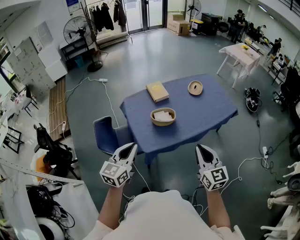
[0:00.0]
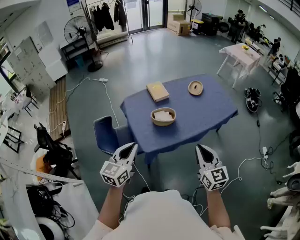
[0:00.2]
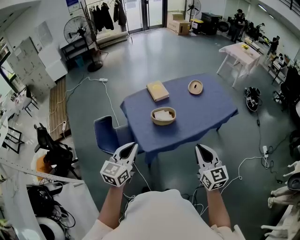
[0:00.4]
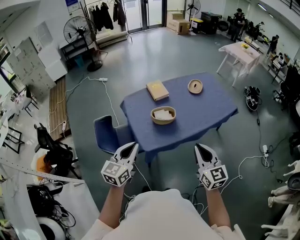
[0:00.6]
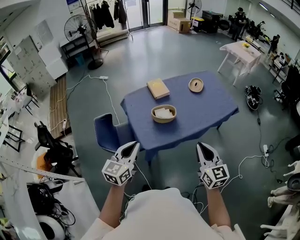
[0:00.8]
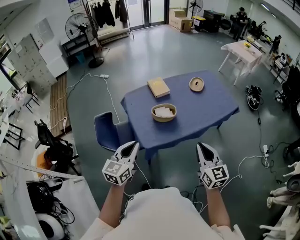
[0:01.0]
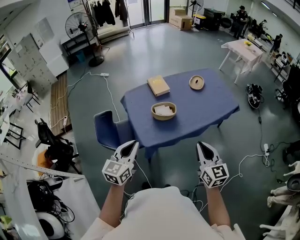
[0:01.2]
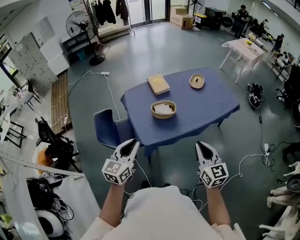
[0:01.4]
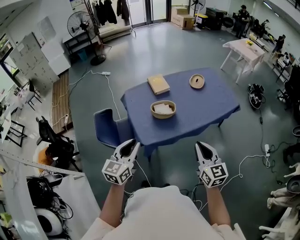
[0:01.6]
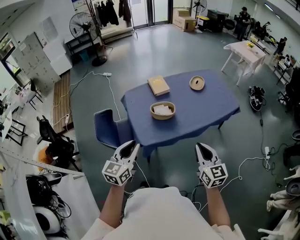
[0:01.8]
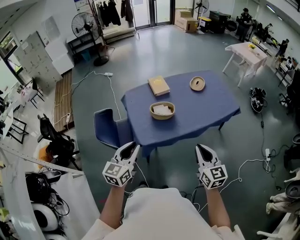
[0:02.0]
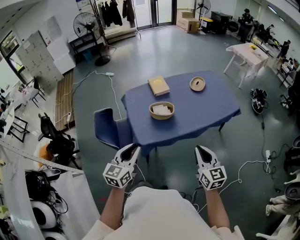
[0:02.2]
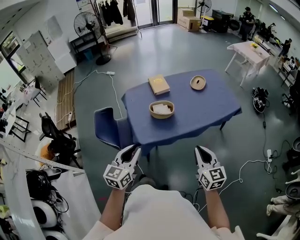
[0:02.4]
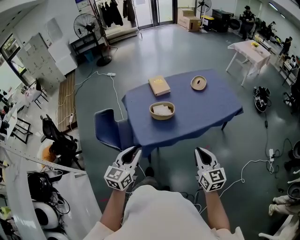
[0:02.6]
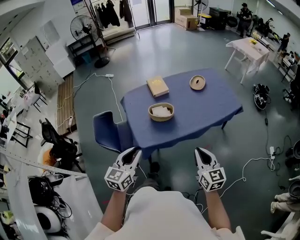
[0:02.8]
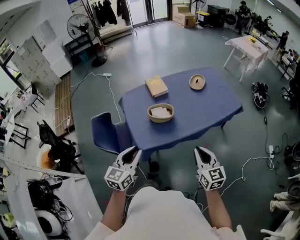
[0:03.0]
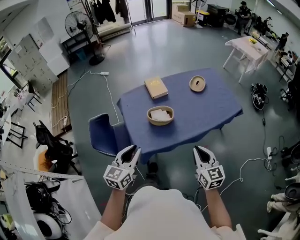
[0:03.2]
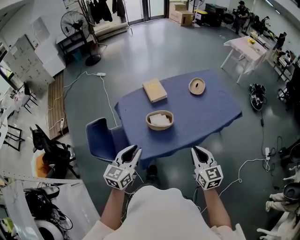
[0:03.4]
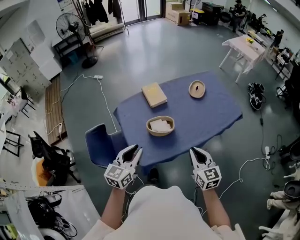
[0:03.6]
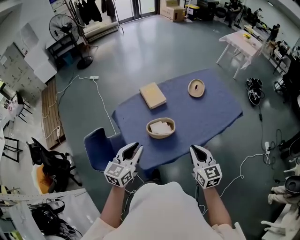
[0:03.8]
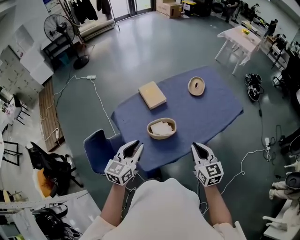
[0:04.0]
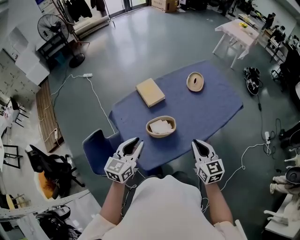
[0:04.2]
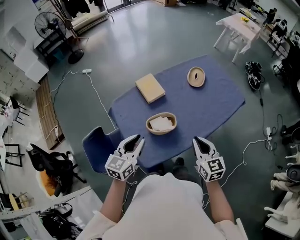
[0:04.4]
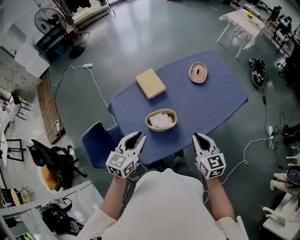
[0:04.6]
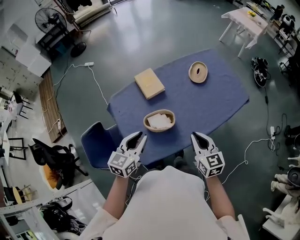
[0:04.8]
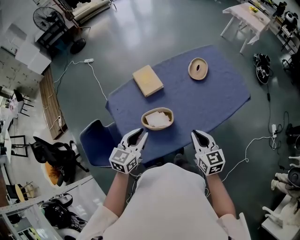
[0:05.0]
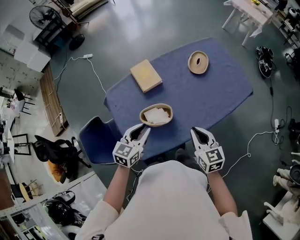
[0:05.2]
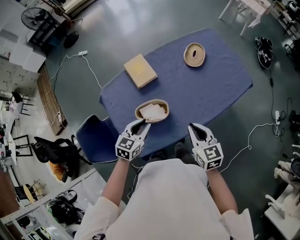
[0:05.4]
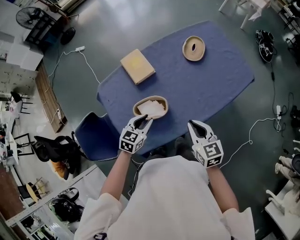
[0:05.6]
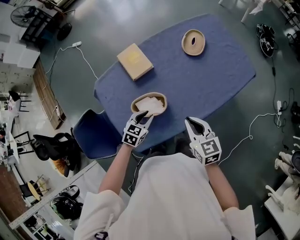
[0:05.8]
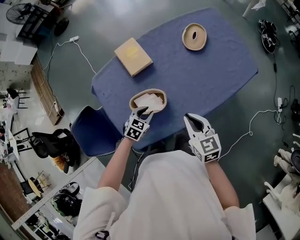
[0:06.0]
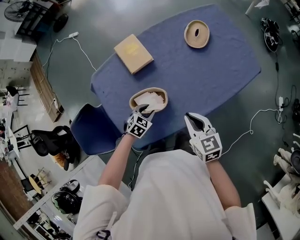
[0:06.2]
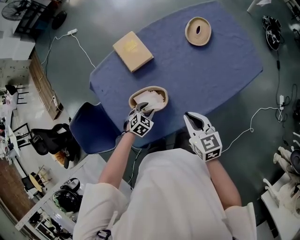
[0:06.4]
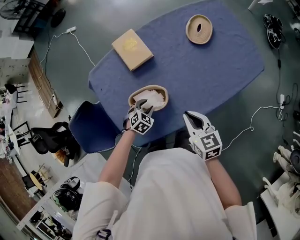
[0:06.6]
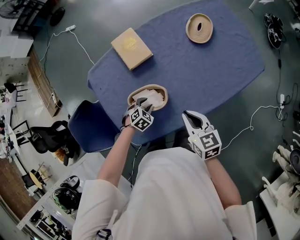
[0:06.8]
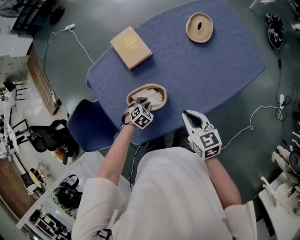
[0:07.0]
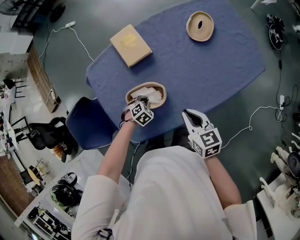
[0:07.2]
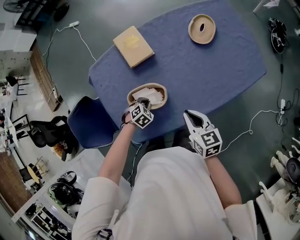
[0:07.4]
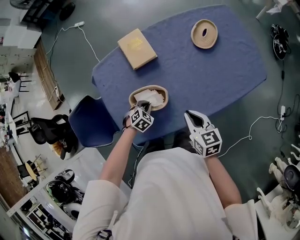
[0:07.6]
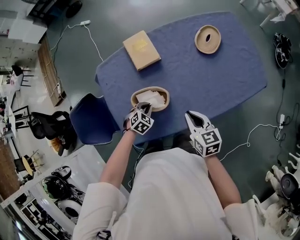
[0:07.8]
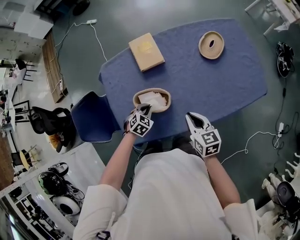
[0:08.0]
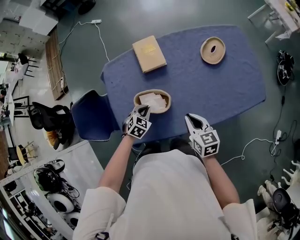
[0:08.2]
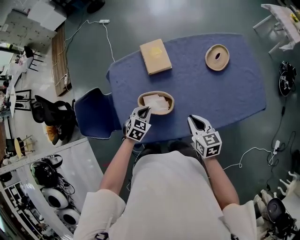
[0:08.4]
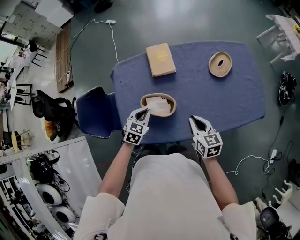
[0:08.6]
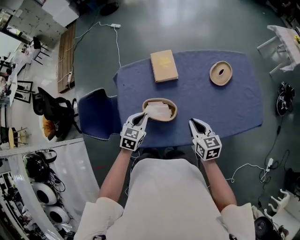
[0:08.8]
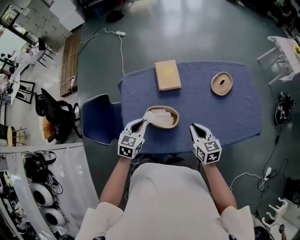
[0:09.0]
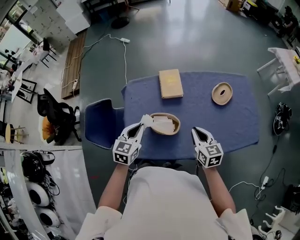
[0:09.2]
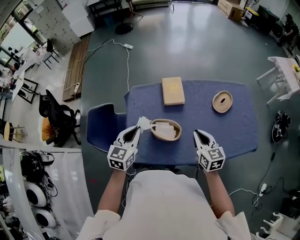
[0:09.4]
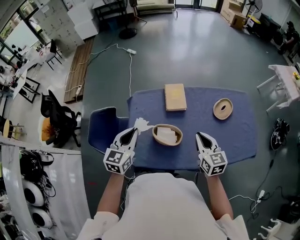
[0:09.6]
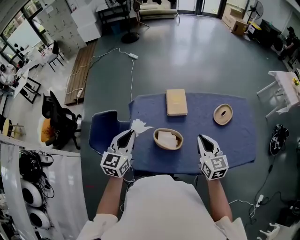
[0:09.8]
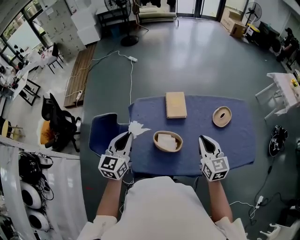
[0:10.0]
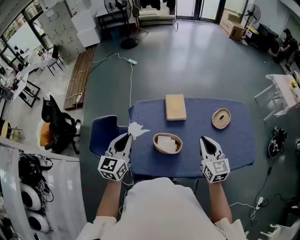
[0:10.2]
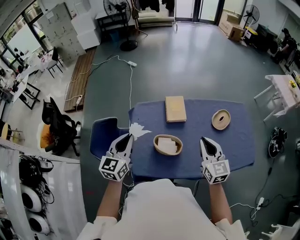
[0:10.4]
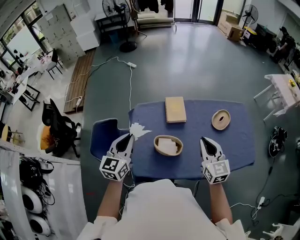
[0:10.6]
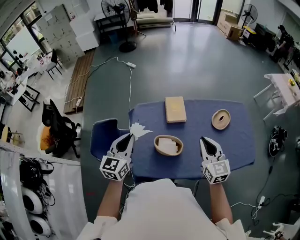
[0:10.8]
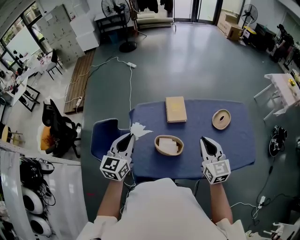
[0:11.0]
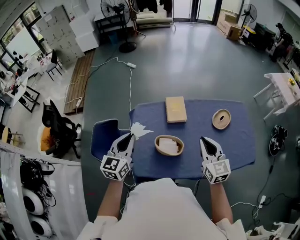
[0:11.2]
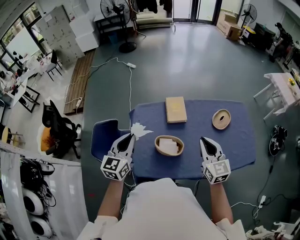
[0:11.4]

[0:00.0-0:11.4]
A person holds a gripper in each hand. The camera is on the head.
0:00.0 to 0:01.4: The grippers stay close to where they were, moving slightly.
0:01.4 to 0:02.8: Both grippers travel together to the right, approximately 5 cm.
0:02.8 to 0:04.2: The right gripper shifts about 25 cm forward and to the left; the left gripper shifts some 30 cm forward.
0:04.2 to 0:05.6: The left gripper shifts about 25 cm downward, to the right and forward, and changes its angle by about 20 degrees; the right gripper travels forward, downward and to the right by approximately 15 cm.
0:05.6 to 0:07.2: The left gripper travels downward by approximately 25 cm, tips its fingers downward by roughly 40 degrees, and closes; the right gripper goes about 10 cm downward.
0:07.2 to 0:08.6: The left gripper heads upward, covering approximately 20 cm, and turns by some 50 degrees.
0:08.6 to 0:10.0: The right gripper travels upward by about 20 cm, and swivels roughly 20 degrees; the left gripper goes about 30 cm upward and to the left, and tips its fingers upward by approximately 30 degrees.
0:10.0 to 0:11.4: The grippers stay close to where they were, moving slightly.

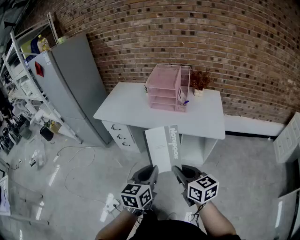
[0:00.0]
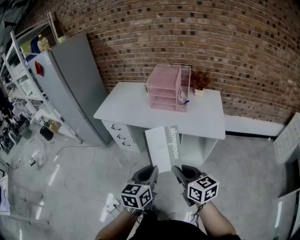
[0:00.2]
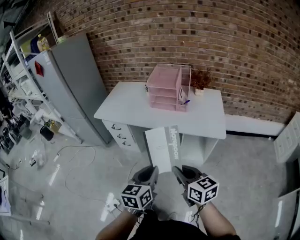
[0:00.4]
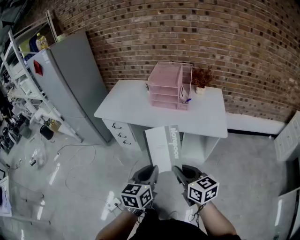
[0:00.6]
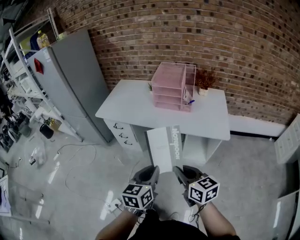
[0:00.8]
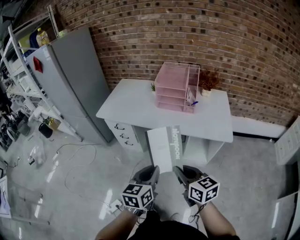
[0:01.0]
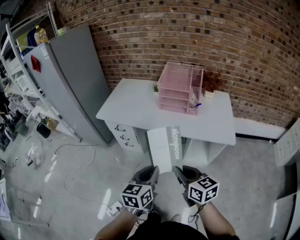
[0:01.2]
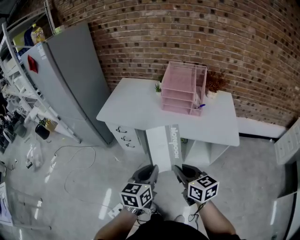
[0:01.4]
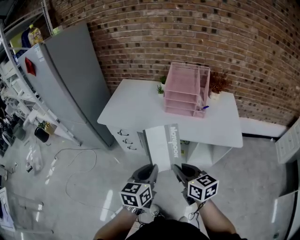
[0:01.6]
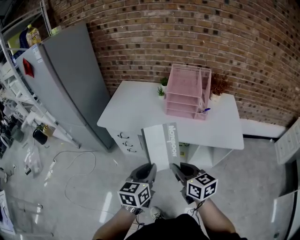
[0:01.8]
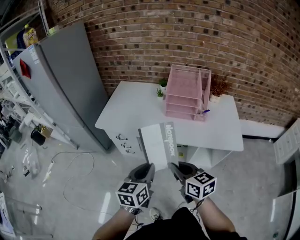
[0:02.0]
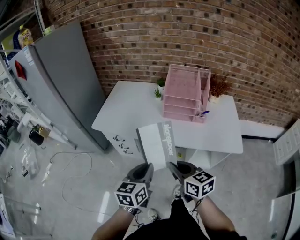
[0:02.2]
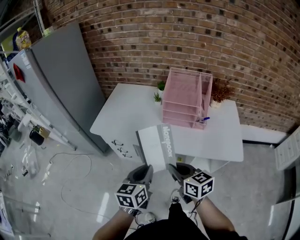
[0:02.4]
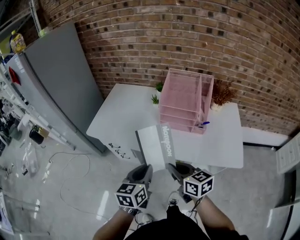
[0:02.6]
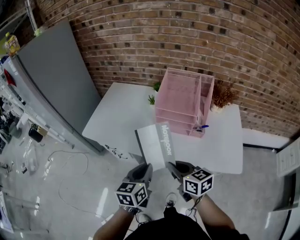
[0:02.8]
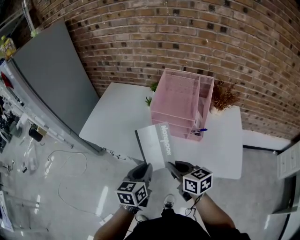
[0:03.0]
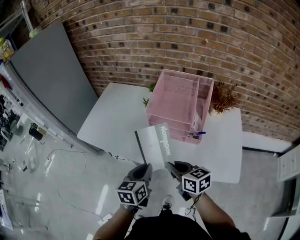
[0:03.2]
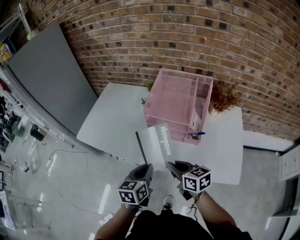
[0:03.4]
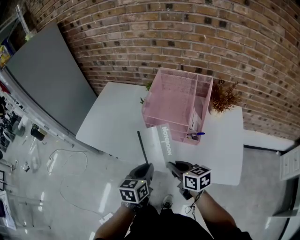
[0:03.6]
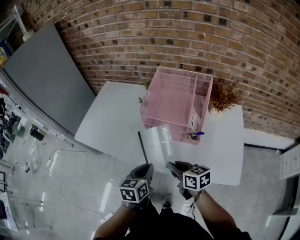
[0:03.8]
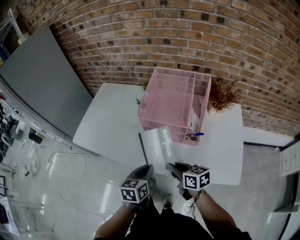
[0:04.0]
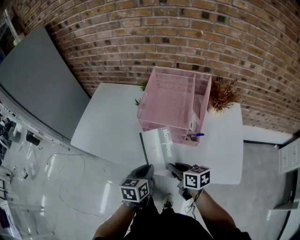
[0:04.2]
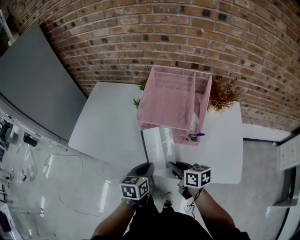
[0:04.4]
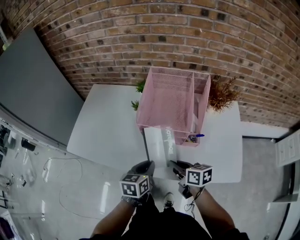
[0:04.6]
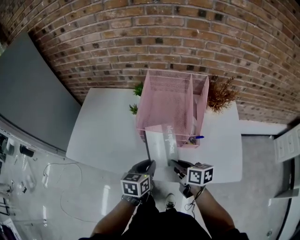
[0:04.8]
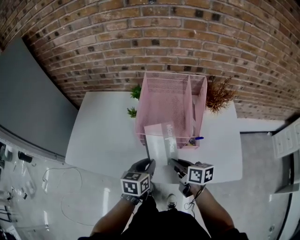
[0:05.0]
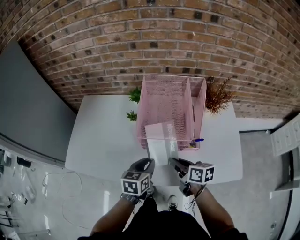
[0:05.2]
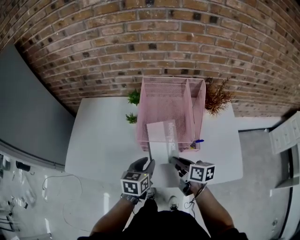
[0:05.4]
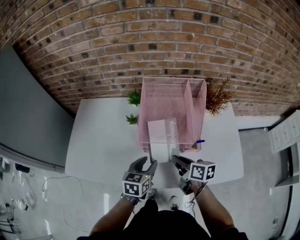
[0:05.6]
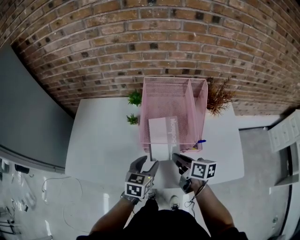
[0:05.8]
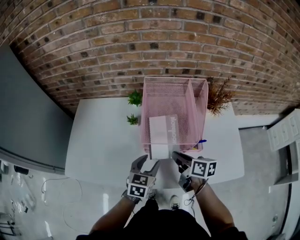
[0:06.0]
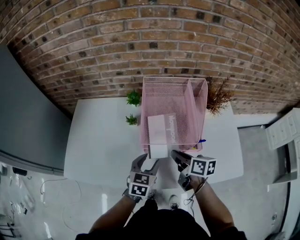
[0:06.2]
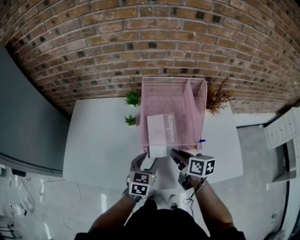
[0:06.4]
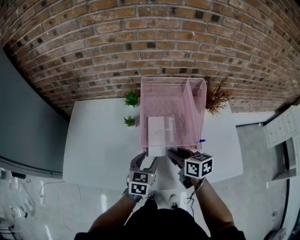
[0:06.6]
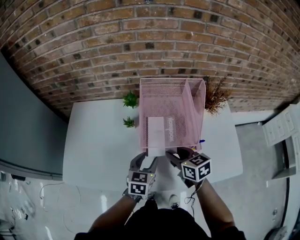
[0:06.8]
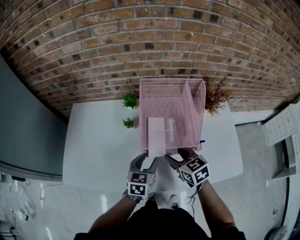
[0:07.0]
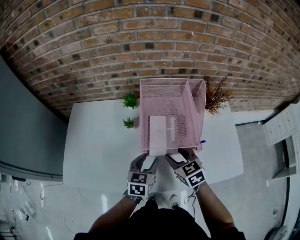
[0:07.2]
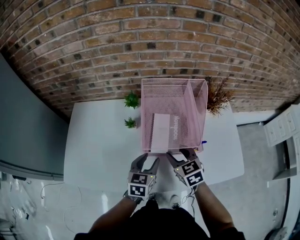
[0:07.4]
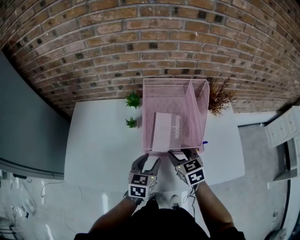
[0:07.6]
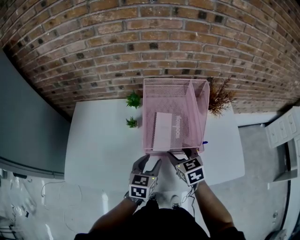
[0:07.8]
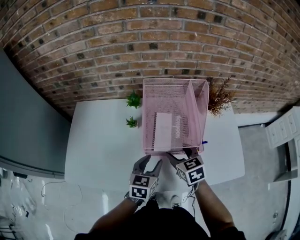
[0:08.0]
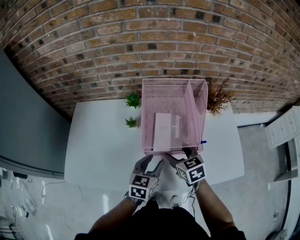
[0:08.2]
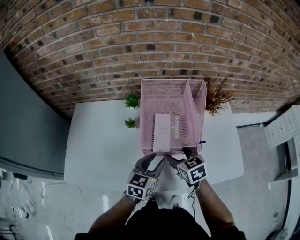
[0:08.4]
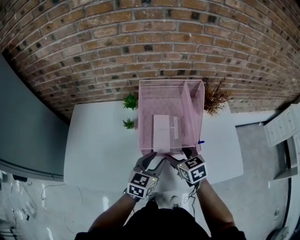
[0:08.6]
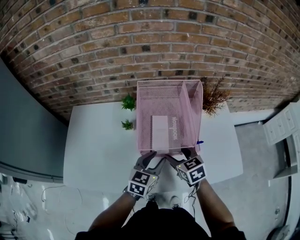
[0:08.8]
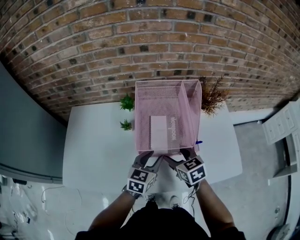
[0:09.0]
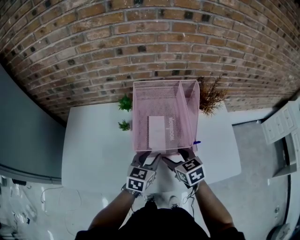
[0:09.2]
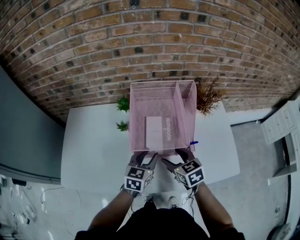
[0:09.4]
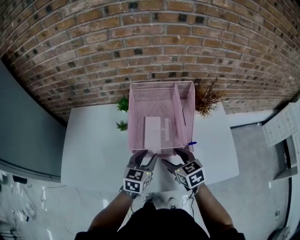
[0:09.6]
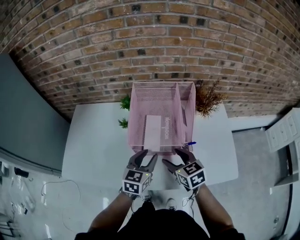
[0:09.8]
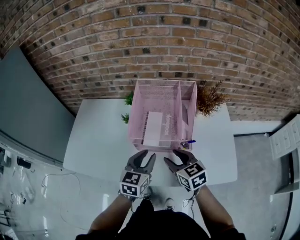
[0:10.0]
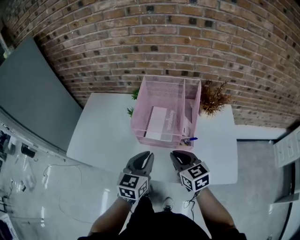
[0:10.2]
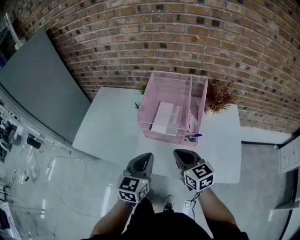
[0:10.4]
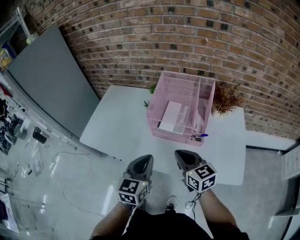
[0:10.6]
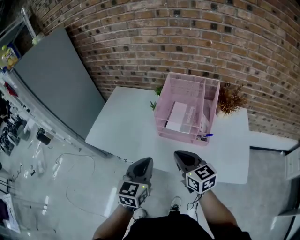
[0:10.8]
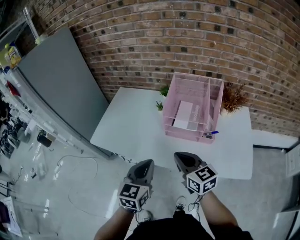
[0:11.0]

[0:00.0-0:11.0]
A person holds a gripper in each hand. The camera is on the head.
0:00.0 to 0:01.6: Both grippers travel together forward and to the left, some 20 cm.
0:01.6 to 0:03.2: The grippers both shift forward and to the right by approximately 25 cm.
0:03.2 to 0:04.8: The two grippers go some 10 cm forward and downward. The right gripper turns by roughly 20 degrees.
0:04.8 to 0:06.2: Both grippers travel together forward, approximately 10 cm. The left gripper changes its angle by roughly 20 degrees, and opens.
0:06.2 to 0:07.8: The right gripper rotates around the line of its fingers by approximately 40 degrees, counterclockwise from behind, and opens.
0:07.8 to 0:09.4: The left gripper changes place by roughly 5 cm.
0:09.4 to 0:11.0: The two grippers go some 25 cm backward, upward and to the left. The right gripper changes its angle by approximately 30 degrees, and closes its fingers. Meanwhile the left gripper turns by approximately 30 degrees, and closes.

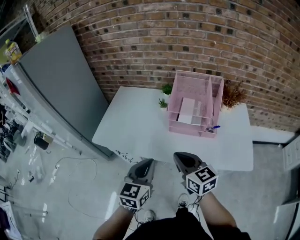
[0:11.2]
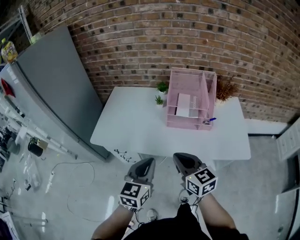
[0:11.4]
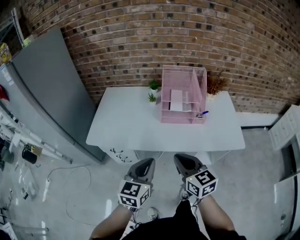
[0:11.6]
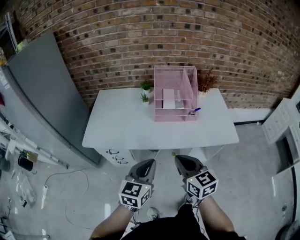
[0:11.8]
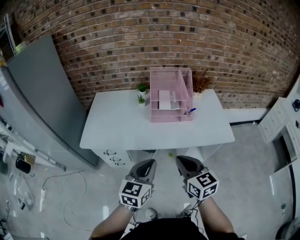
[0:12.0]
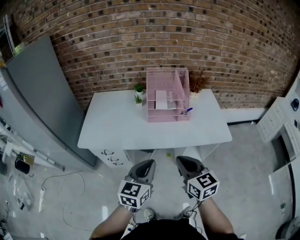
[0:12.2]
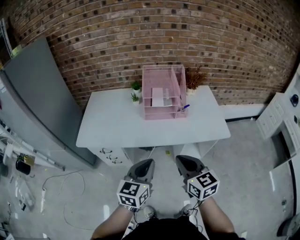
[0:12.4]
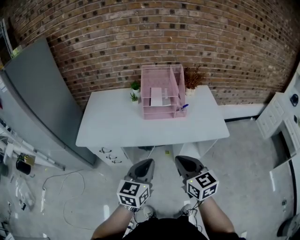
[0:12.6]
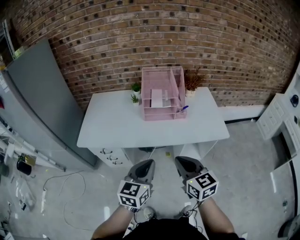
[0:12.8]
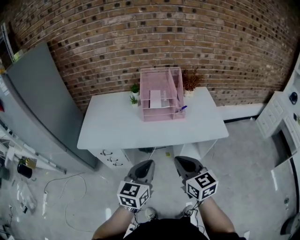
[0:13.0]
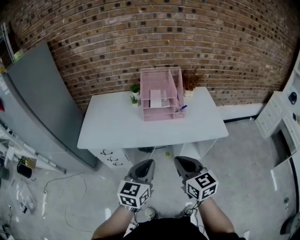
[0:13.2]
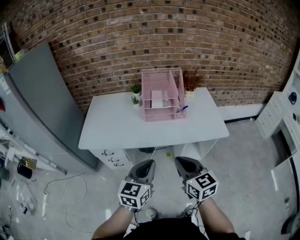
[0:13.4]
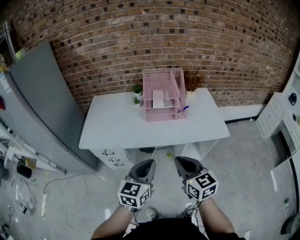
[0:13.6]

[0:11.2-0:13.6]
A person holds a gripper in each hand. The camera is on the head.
0:11.2 to 0:12.4: Both grippers travel together backward, about 15 cm. The right gripper rotates roughly 20 degrees.
0:12.4 to 0:13.6: The grippers stay close to where they were, moving slightly.
